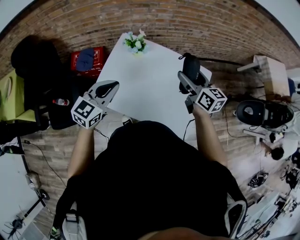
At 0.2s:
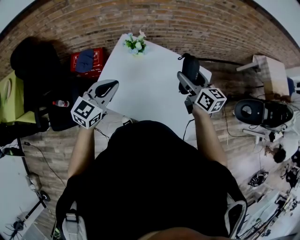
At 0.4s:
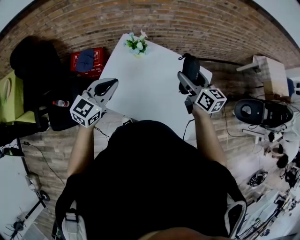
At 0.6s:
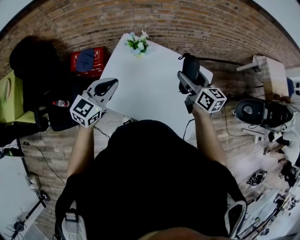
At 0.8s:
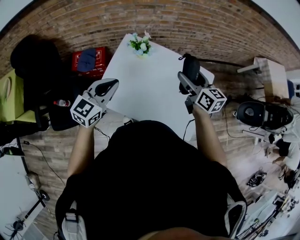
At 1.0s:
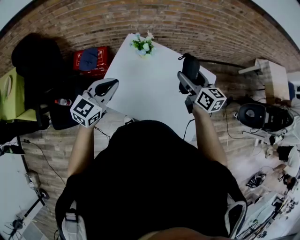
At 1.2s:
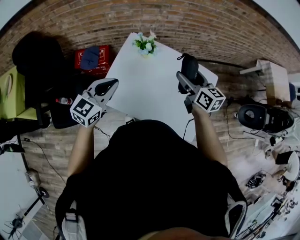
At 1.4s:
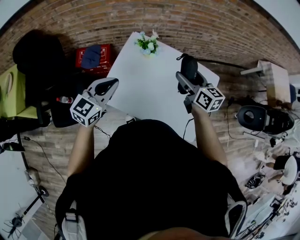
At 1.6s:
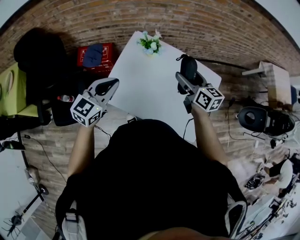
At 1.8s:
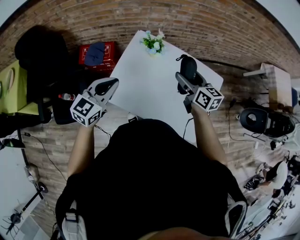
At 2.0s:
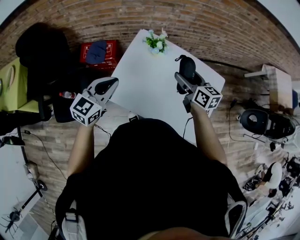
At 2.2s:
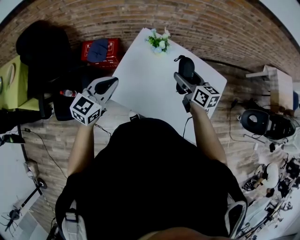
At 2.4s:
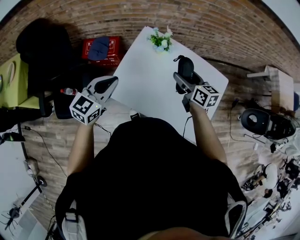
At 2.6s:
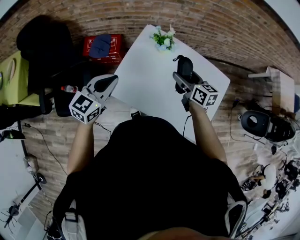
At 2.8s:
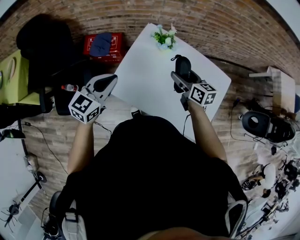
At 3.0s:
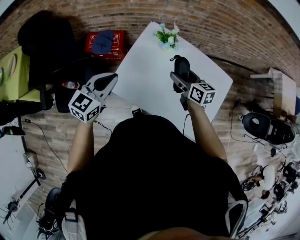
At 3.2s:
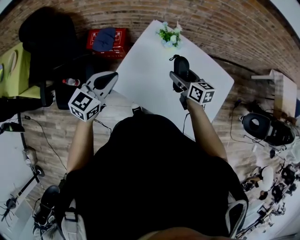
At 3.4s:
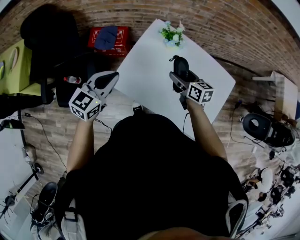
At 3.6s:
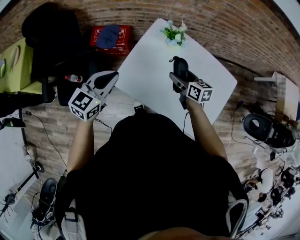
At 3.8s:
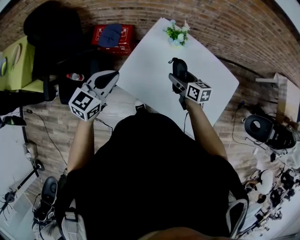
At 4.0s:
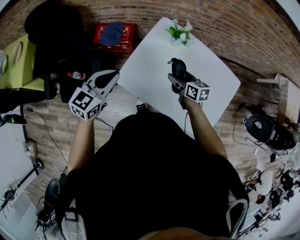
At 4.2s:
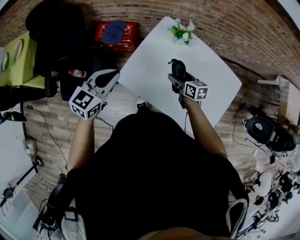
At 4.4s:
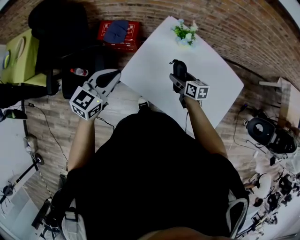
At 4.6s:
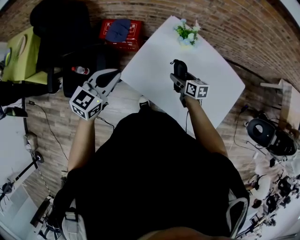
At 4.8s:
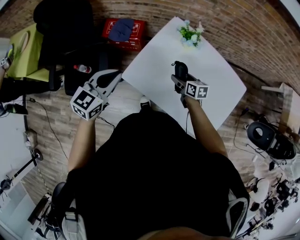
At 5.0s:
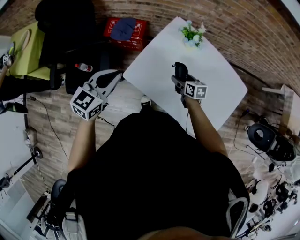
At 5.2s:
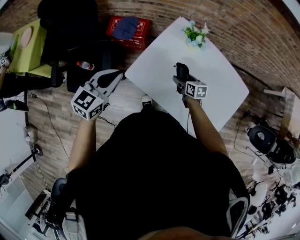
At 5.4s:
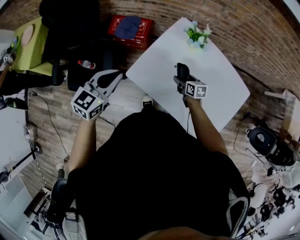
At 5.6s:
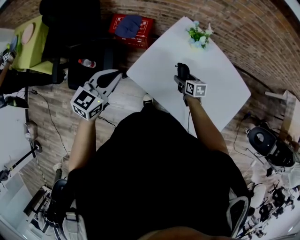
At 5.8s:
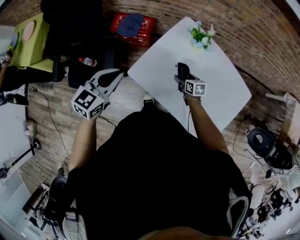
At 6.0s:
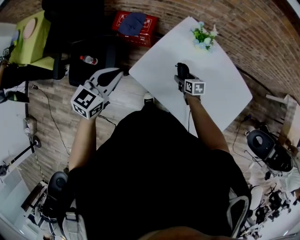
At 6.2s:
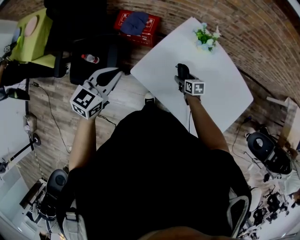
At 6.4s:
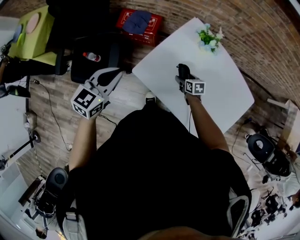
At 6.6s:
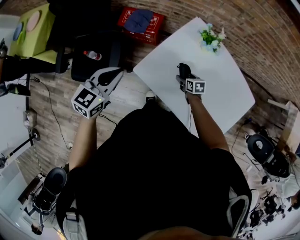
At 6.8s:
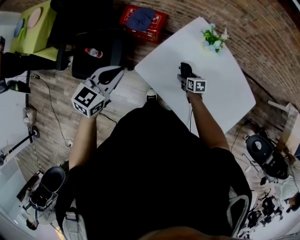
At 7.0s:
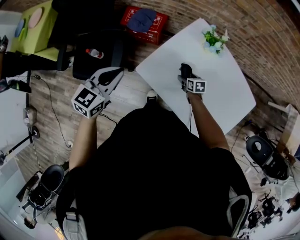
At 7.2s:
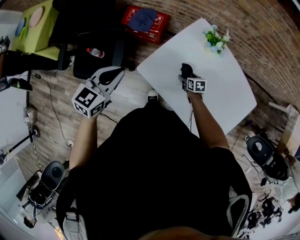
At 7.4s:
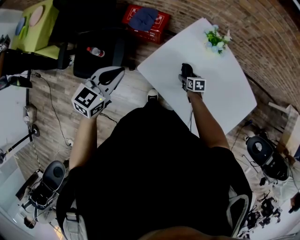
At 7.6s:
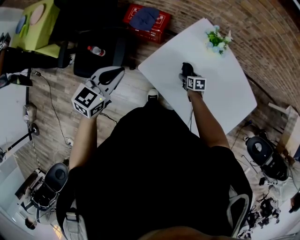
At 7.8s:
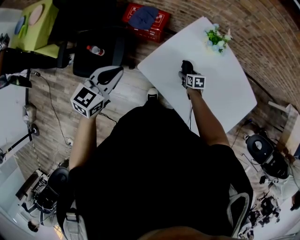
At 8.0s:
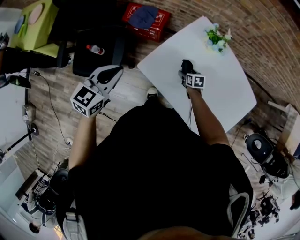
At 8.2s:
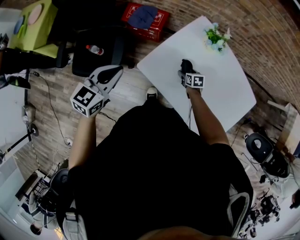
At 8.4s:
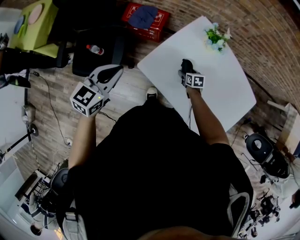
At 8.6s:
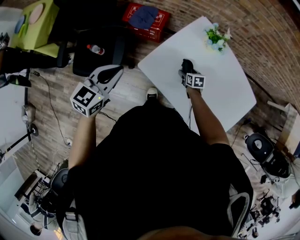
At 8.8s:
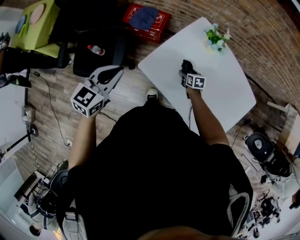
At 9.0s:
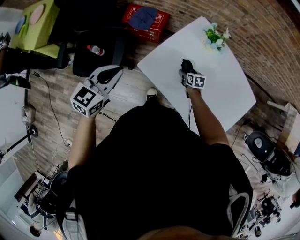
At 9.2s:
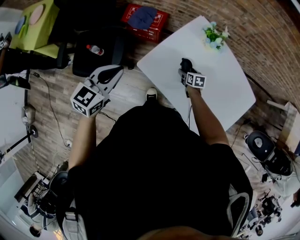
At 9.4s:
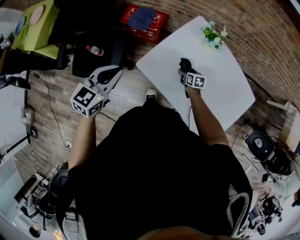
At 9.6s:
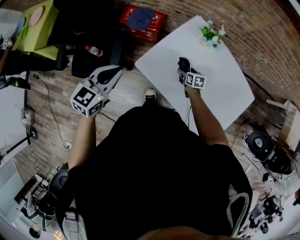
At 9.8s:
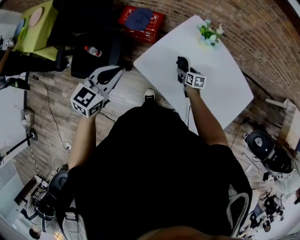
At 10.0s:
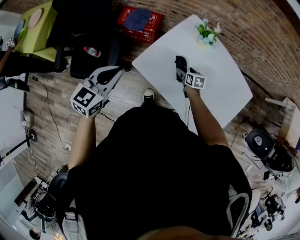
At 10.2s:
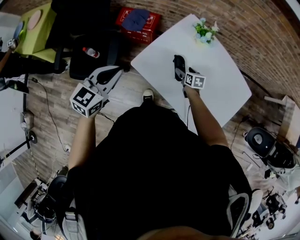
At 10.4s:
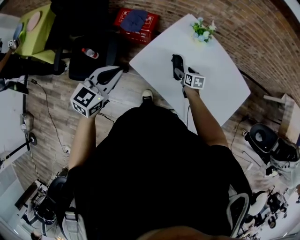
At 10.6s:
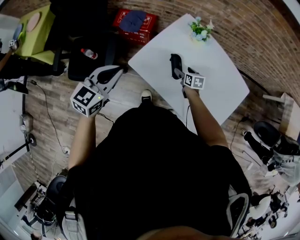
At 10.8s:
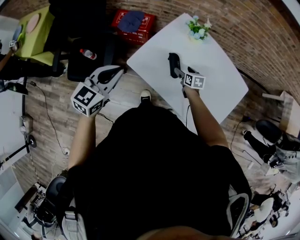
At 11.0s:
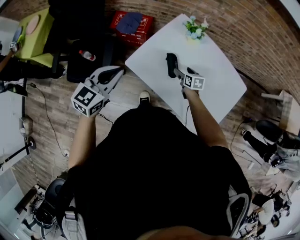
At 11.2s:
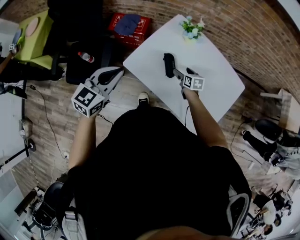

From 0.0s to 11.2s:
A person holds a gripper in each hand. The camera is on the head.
From 0.0s to 1.6s: Both grippers travel together to the left, approximately 10 cm.
From 1.6s to 3.2s: The left gripper moves to the left, about 10 cm. The right gripper shifts about 15 cm downward and to the left.
From 3.2s to 4.8s: The left gripper is displaced to the left by some 5 cm; the right gripper travels downward and to the left by approximately 15 cm.
From 4.8s to 6.4s: The left gripper moves to the left, roughly 5 cm, while the right gripper travels downward by approximately 10 cm.
From 6.4s to 9.6s: The grippers stay close to where they were, moving slightly.
From 9.6s to 11.2s: The right gripper is displaced upward and to the right by roughly 10 cm. The left gripper is displaced to the right by about 10 cm.

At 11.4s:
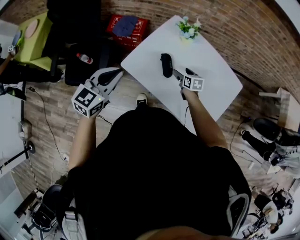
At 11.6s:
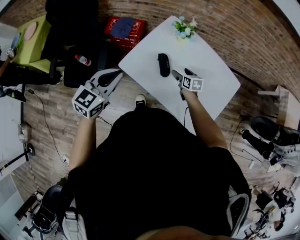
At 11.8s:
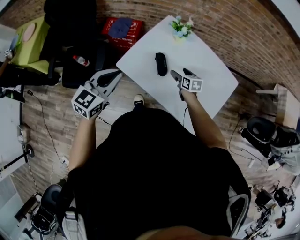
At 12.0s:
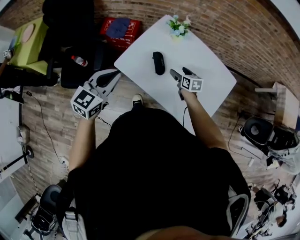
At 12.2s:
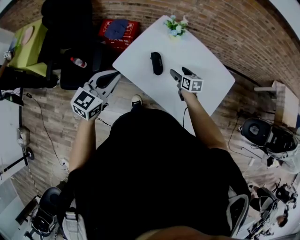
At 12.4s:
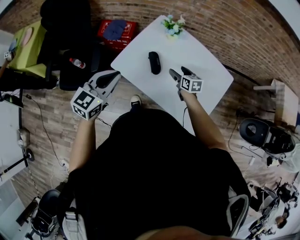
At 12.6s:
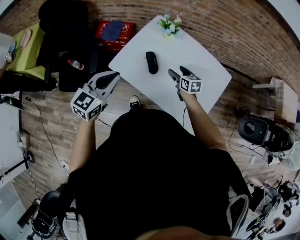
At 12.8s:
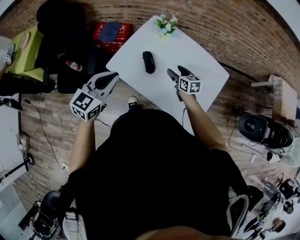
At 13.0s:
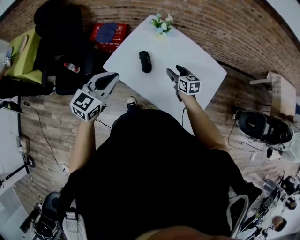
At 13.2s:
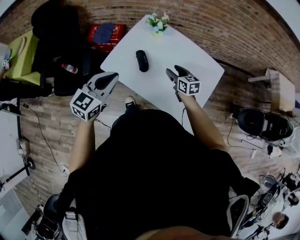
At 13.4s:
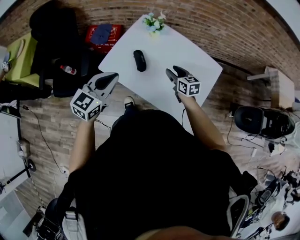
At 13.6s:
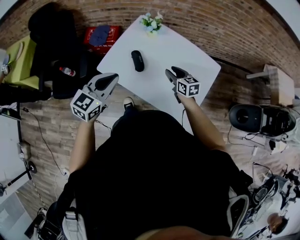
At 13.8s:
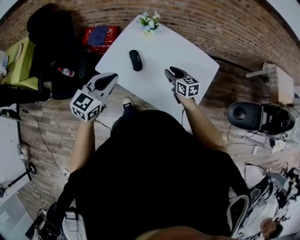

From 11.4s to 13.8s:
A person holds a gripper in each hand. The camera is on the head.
From 11.4s to 12.6s: The right gripper heads upward and to the right, covering some 10 cm. The left gripper is displaced to the right by about 5 cm.
From 12.6s to 13.8s: The left gripper goes some 10 cm to the right, while the right gripper is displaced backward, to the right and upward by roughly 10 cm, and closes up.

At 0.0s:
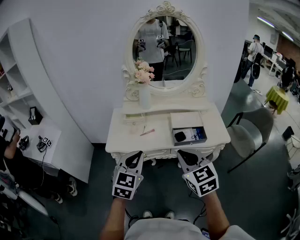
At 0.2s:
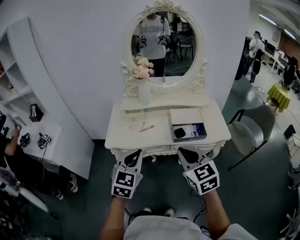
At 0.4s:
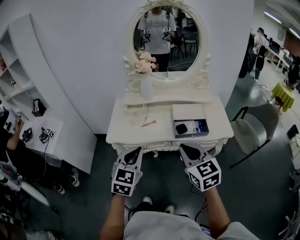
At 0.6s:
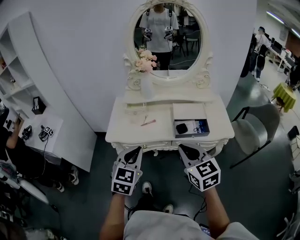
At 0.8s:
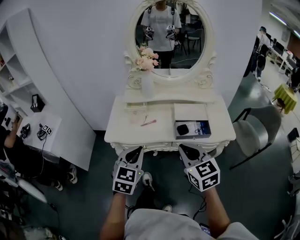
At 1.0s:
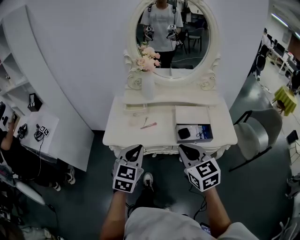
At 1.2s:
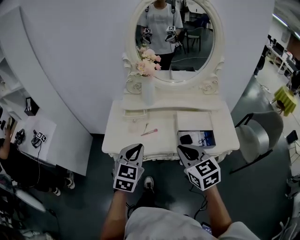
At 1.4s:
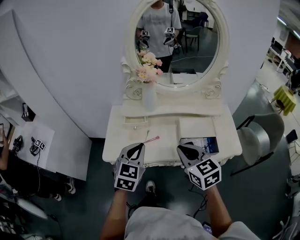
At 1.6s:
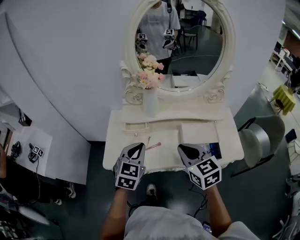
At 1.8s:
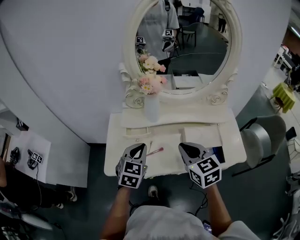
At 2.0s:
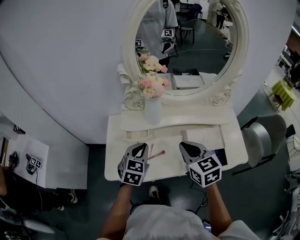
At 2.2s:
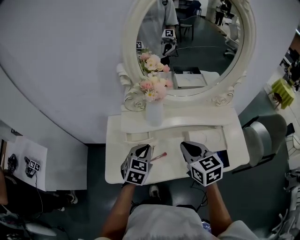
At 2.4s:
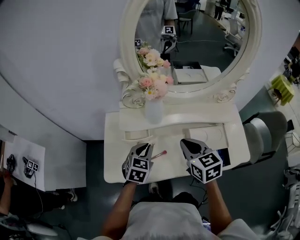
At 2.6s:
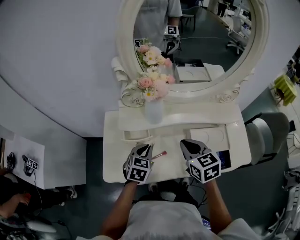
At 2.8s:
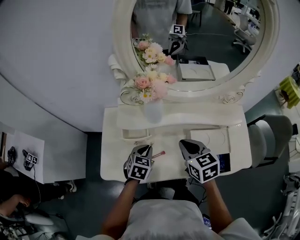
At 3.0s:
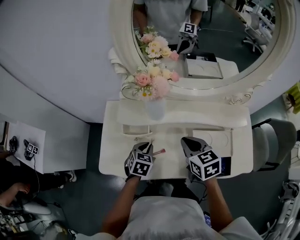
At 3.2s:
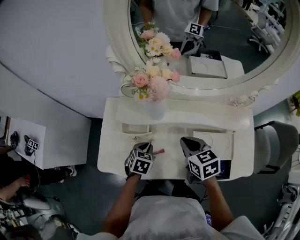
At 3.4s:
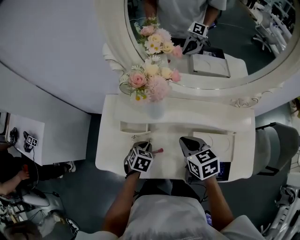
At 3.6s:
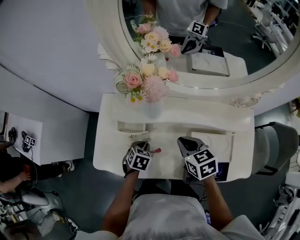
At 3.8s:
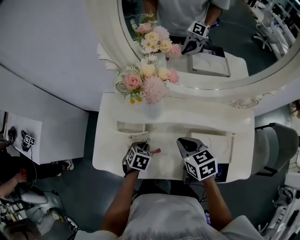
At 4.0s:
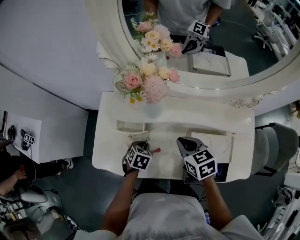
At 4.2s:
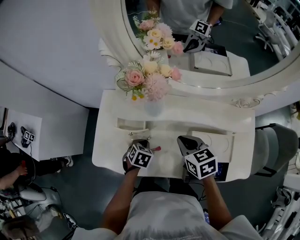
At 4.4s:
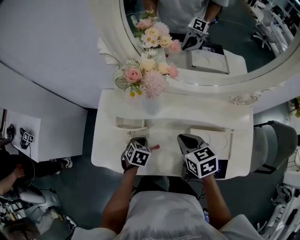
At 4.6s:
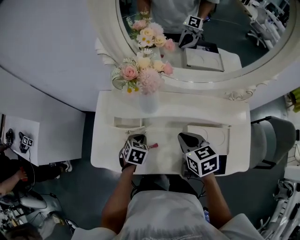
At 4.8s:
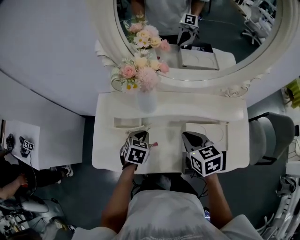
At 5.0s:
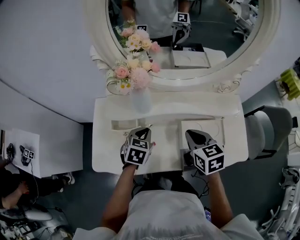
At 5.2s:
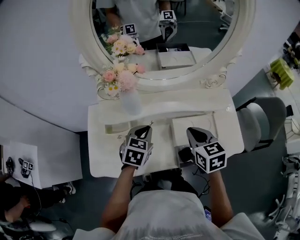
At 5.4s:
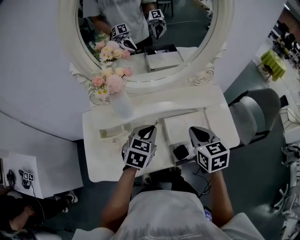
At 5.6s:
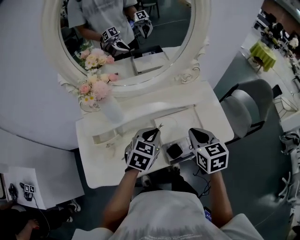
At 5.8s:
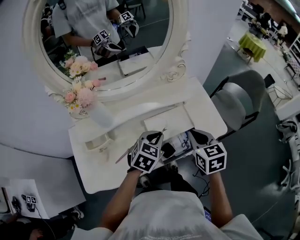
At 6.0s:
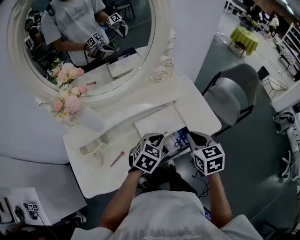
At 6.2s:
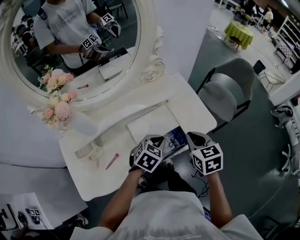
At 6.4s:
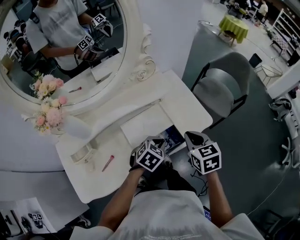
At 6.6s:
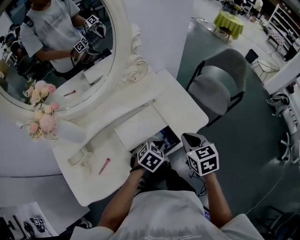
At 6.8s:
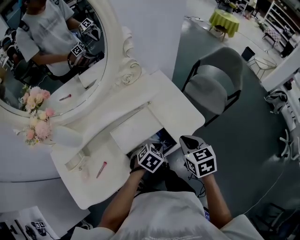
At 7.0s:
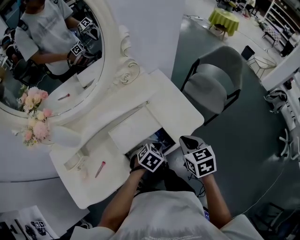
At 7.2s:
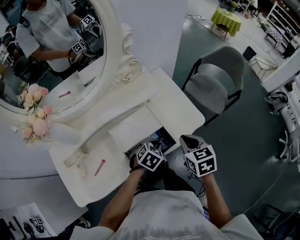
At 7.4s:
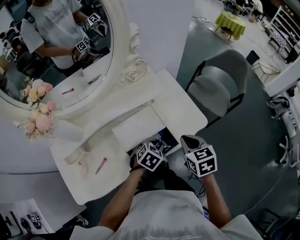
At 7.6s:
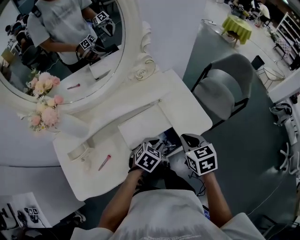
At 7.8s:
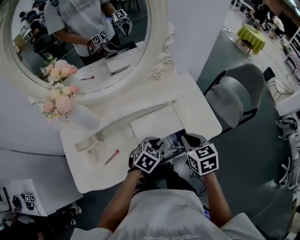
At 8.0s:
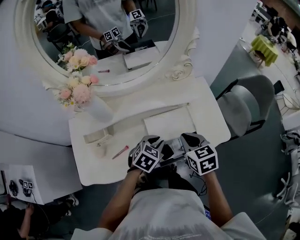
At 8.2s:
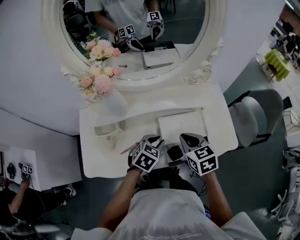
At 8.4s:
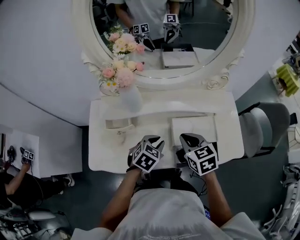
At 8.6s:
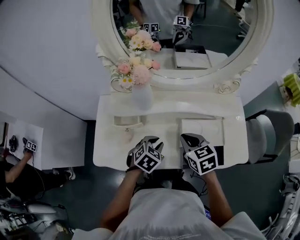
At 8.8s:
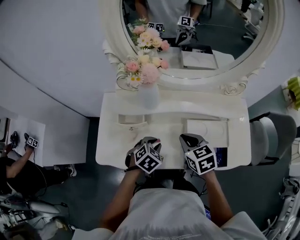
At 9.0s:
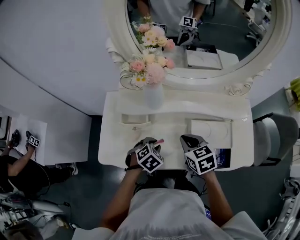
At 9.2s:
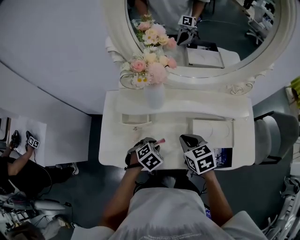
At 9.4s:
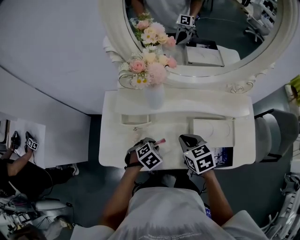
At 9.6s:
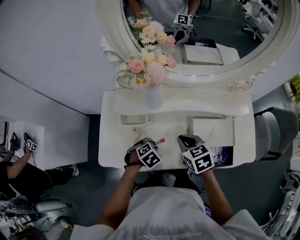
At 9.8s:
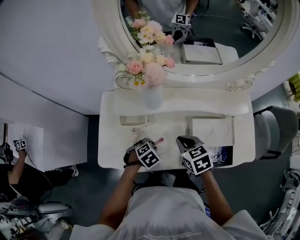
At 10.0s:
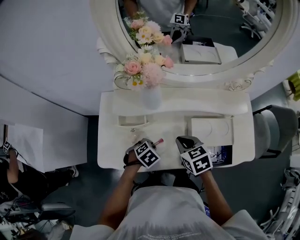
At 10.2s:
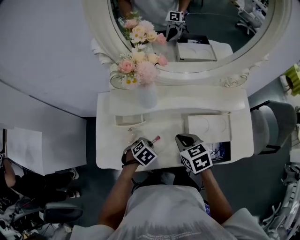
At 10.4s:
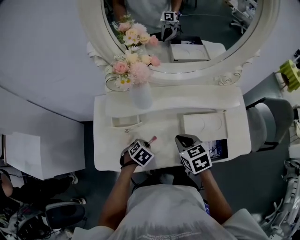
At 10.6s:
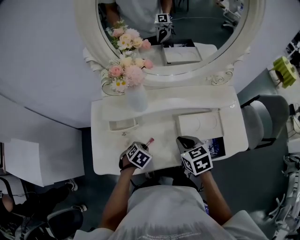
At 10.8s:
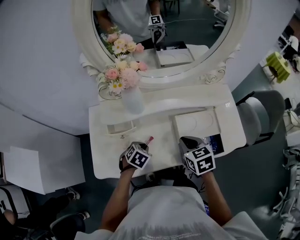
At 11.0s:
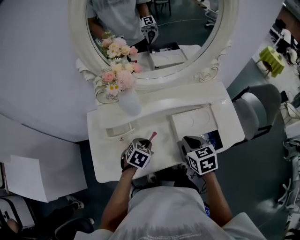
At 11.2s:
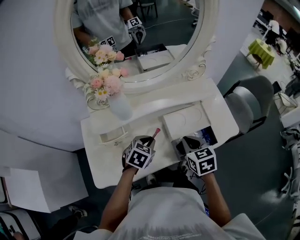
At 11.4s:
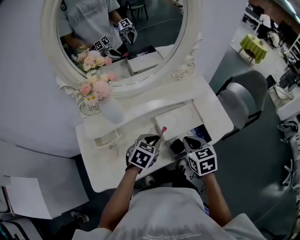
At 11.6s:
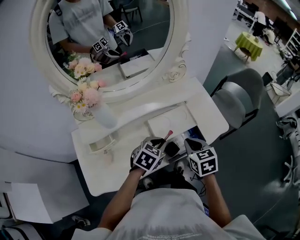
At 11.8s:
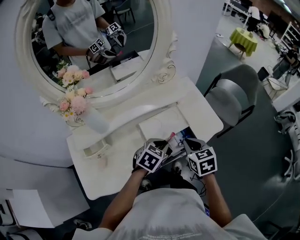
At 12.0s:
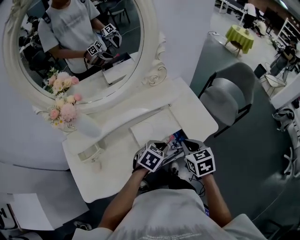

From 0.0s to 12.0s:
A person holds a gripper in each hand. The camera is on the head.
From 0.0s to 1.6s: Both grippers travel together forward, approximately 25 cm.
From 1.6s to 3.0s: The left gripper moves downward and forward, some 25 cm, and turns by roughly 30 degrees; the right gripper moves forward and downward, about 20 cm.
From 3.0s to 4.4s: The left gripper shifts about 5 cm downward.
From 4.4s to 6.0s: The left gripper changes place by about 35 cm, and changes its angle by about 50 degrees; the right gripper shifts by some 30 cm, and swivels roughly 40 degrees.
From 6.0s to 7.6s: The left gripper heads downward and to the right, covering some 10 cm.
From 7.6s to 9.0s: The right gripper moves roughly 30 cm, and swivels about 40 degrees. The left gripper changes place by roughly 30 cm, and changes its angle by about 30 degrees.
From 9.0s to 10.4s: The left gripper heads downward, covering about 5 cm.
From 10.4s to 12.0s: The right gripper ends up about 25 cm from where it was, and rotates some 30 degrees. The left gripper moves approximately 35 cm, and swivels roughly 30 degrees.
